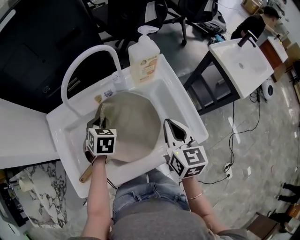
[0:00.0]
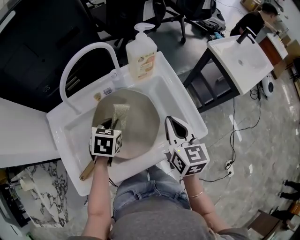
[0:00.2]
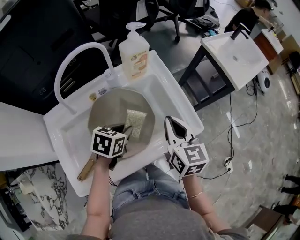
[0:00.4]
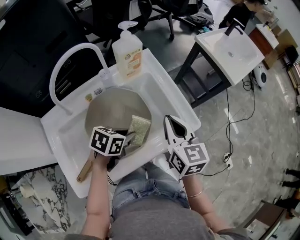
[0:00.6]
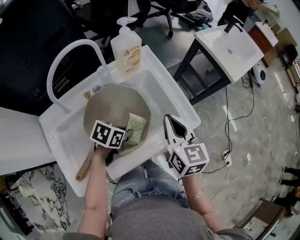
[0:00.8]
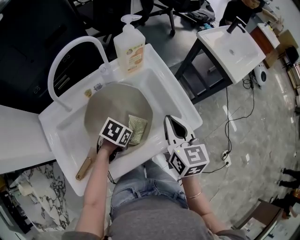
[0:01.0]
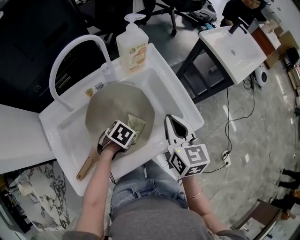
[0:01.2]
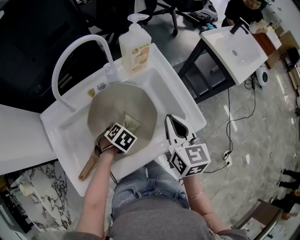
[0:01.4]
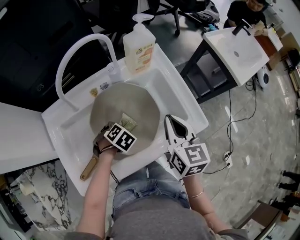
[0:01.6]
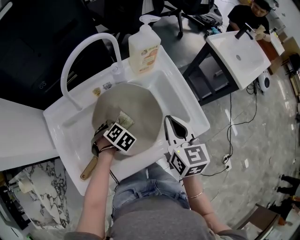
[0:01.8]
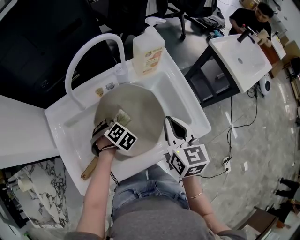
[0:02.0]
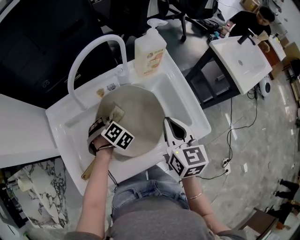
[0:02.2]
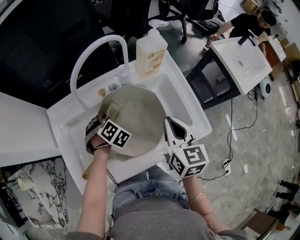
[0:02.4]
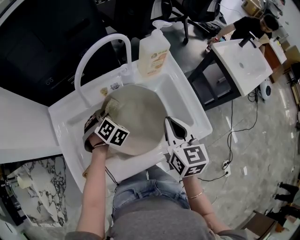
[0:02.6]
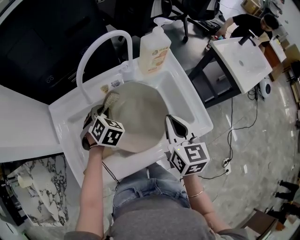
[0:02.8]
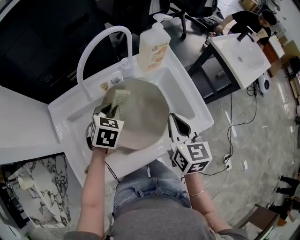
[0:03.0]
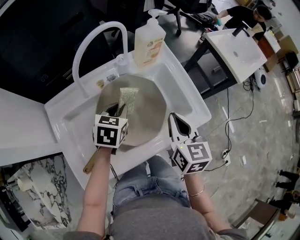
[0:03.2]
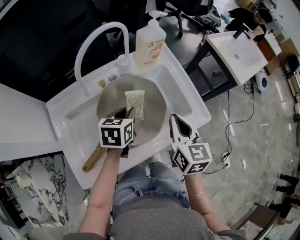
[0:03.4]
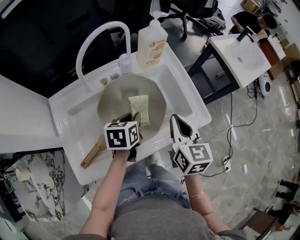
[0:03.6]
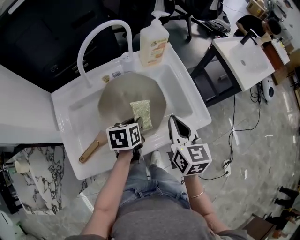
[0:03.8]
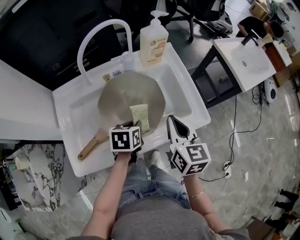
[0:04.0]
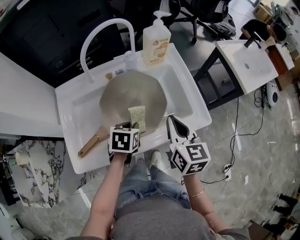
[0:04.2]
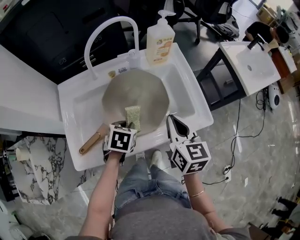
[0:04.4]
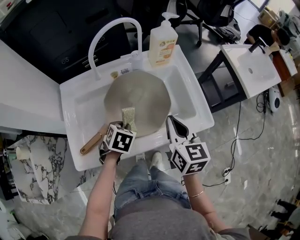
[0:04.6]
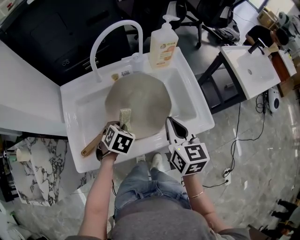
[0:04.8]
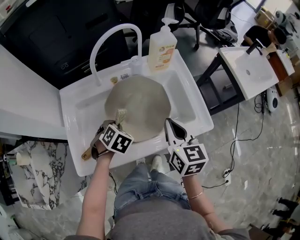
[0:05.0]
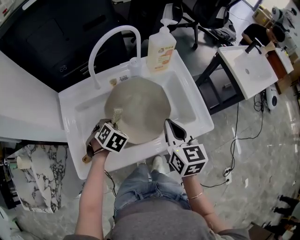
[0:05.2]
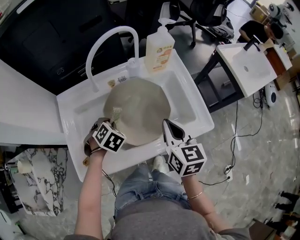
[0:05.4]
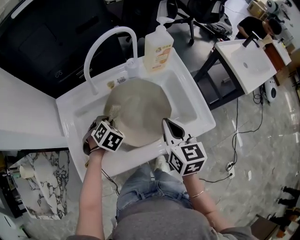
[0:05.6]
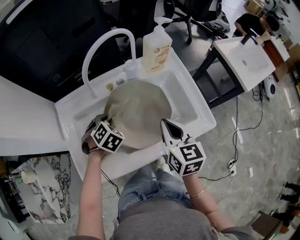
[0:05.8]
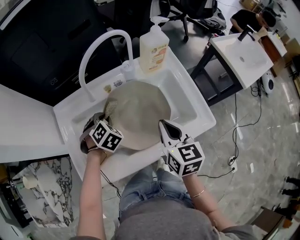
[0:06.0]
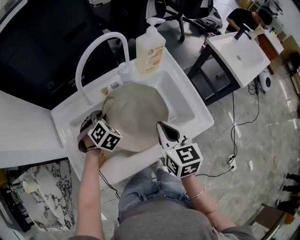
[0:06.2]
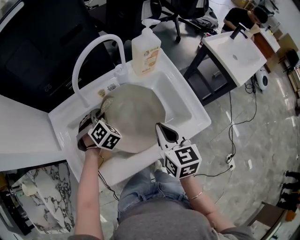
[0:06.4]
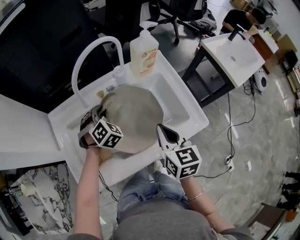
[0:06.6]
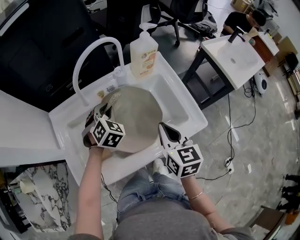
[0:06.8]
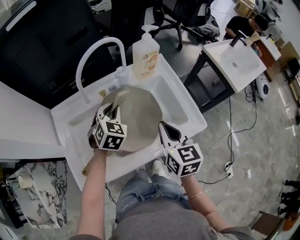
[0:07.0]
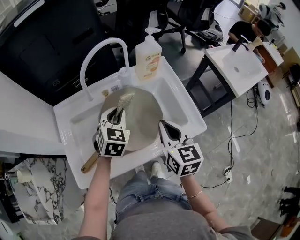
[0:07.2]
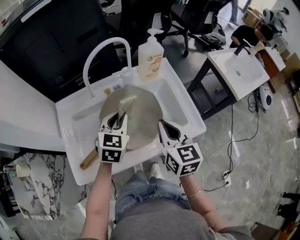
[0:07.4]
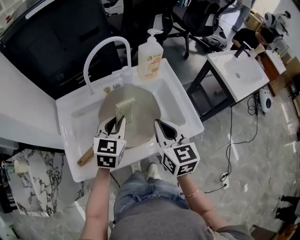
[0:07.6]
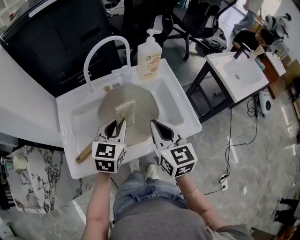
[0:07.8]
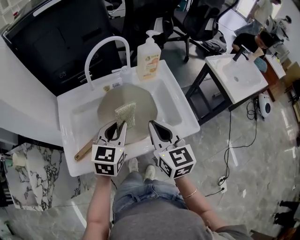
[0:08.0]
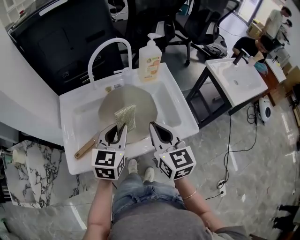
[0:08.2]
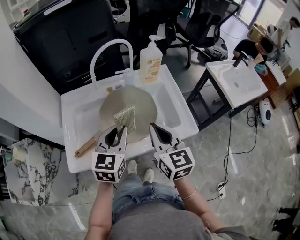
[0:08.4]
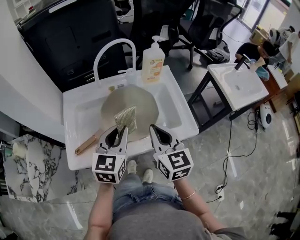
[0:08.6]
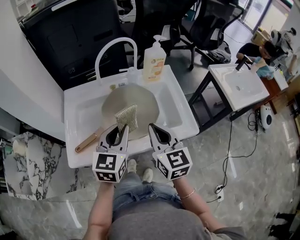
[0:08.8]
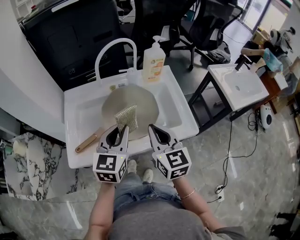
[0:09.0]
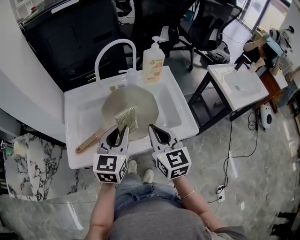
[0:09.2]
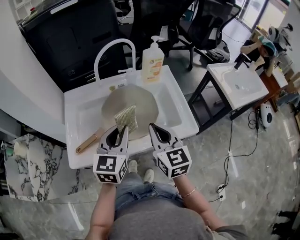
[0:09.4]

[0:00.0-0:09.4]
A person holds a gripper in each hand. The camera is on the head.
0:00.0 to 0:01.6: The left gripper travels downward by about 10 cm, and changes its angle by approximately 40 degrees.
0:01.6 to 0:03.2: The left gripper heads upward, covering about 15 cm, and angles its fingers upward, by some 30 degrees.
0:03.2 to 0:04.8: The left gripper heads backward and downward, covering some 10 cm, and swivels about 30 degrees.
0:04.8 to 0:06.2: The left gripper is displaced forward by approximately 15 cm, and swivels roughly 30 degrees.
0:06.2 to 0:07.8: The right gripper moves upward, roughly 5 cm. The left gripper goes about 20 cm upward, backward and to the right, and changes its angle by about 50 degrees.
0:07.8 to 0:09.4: The left gripper moves backward, roughly 5 cm.

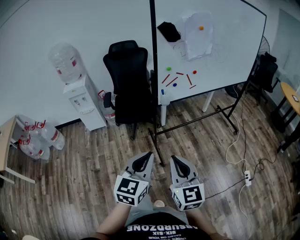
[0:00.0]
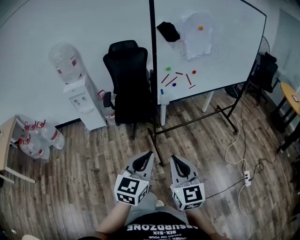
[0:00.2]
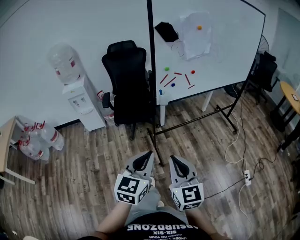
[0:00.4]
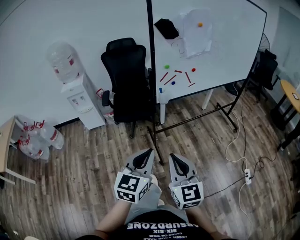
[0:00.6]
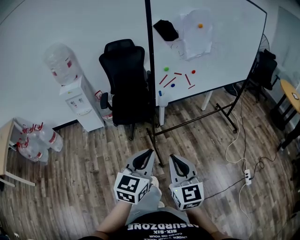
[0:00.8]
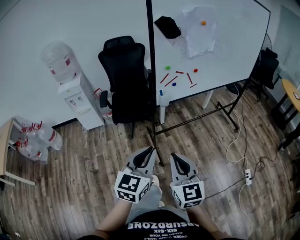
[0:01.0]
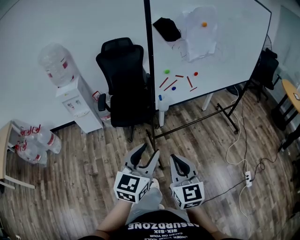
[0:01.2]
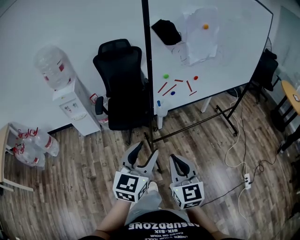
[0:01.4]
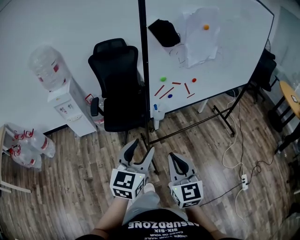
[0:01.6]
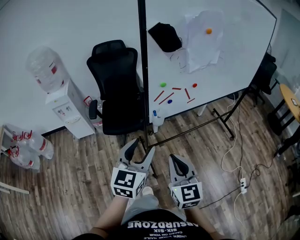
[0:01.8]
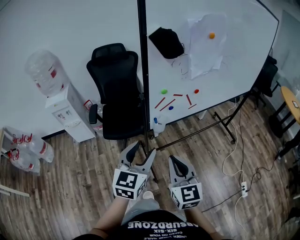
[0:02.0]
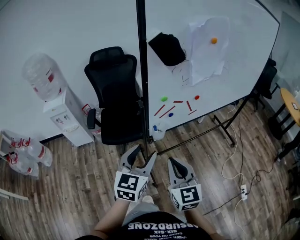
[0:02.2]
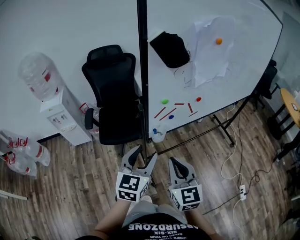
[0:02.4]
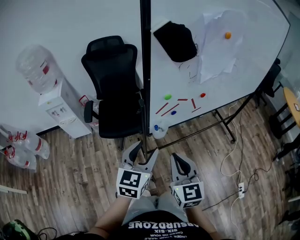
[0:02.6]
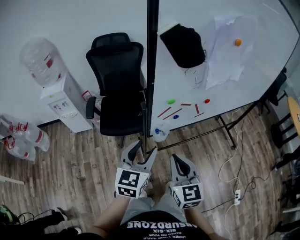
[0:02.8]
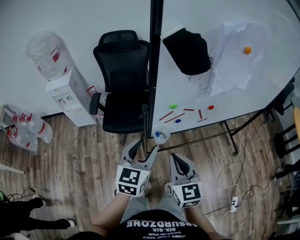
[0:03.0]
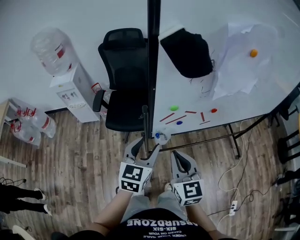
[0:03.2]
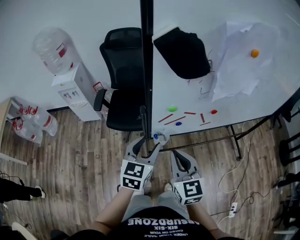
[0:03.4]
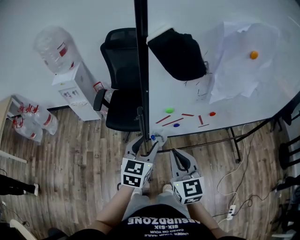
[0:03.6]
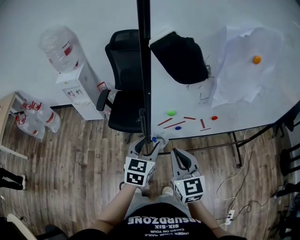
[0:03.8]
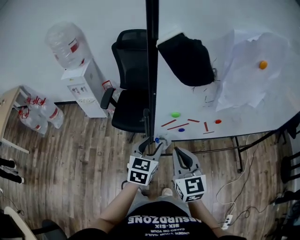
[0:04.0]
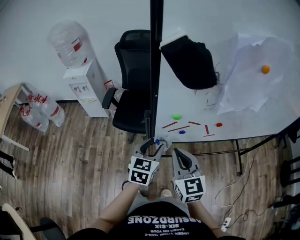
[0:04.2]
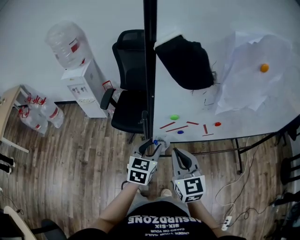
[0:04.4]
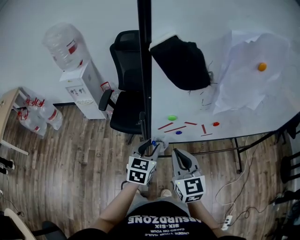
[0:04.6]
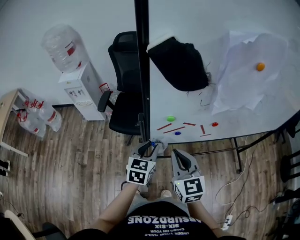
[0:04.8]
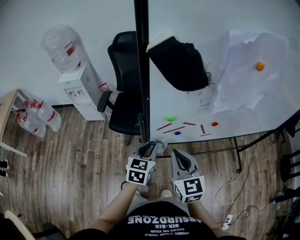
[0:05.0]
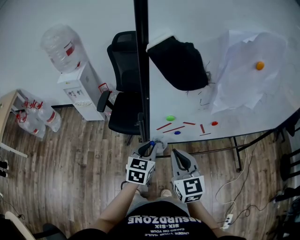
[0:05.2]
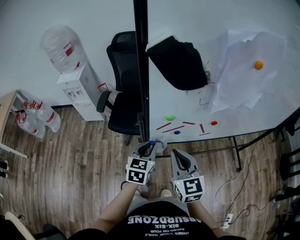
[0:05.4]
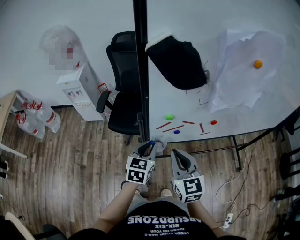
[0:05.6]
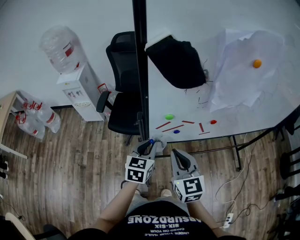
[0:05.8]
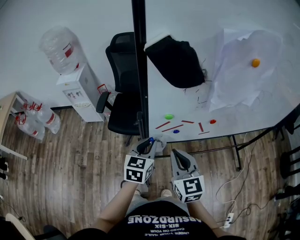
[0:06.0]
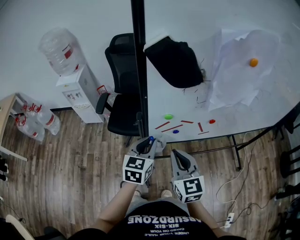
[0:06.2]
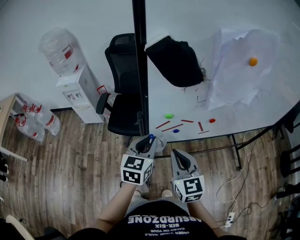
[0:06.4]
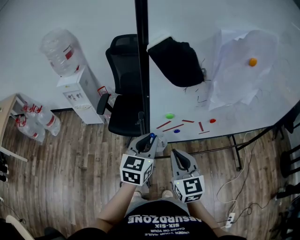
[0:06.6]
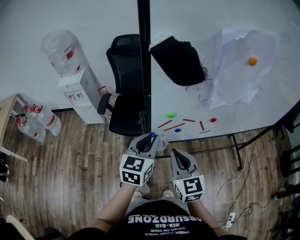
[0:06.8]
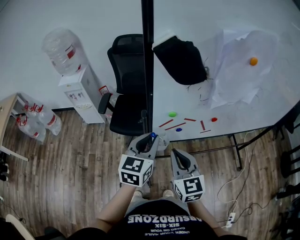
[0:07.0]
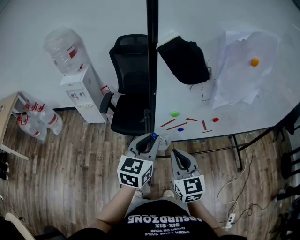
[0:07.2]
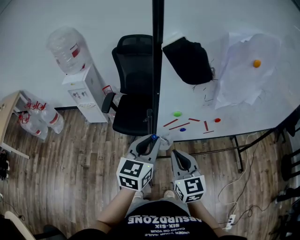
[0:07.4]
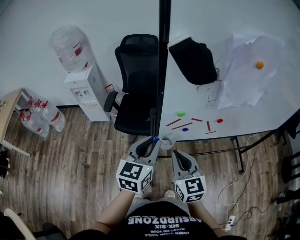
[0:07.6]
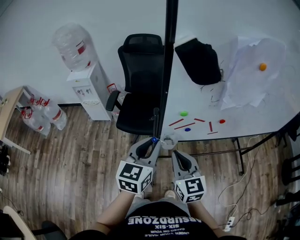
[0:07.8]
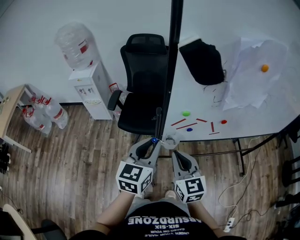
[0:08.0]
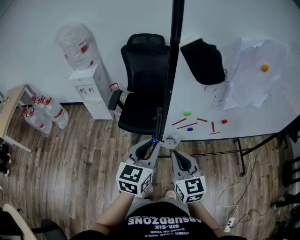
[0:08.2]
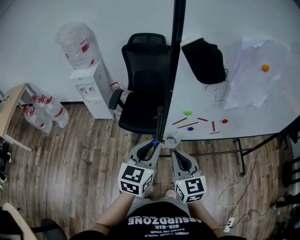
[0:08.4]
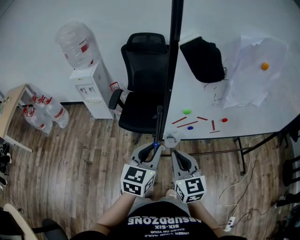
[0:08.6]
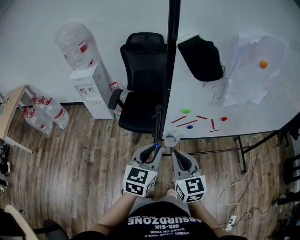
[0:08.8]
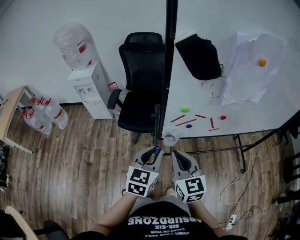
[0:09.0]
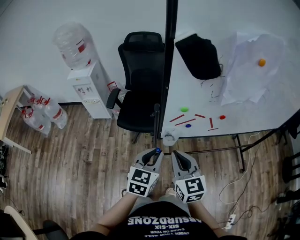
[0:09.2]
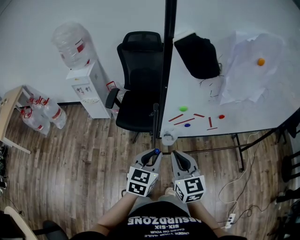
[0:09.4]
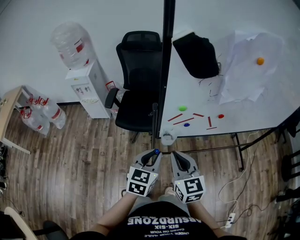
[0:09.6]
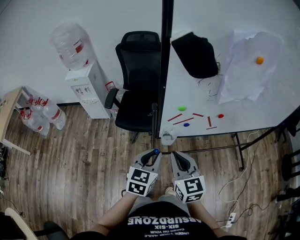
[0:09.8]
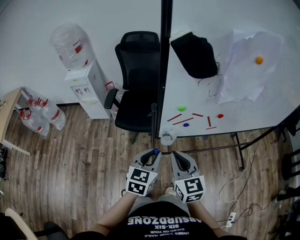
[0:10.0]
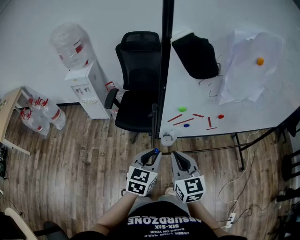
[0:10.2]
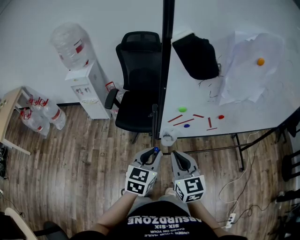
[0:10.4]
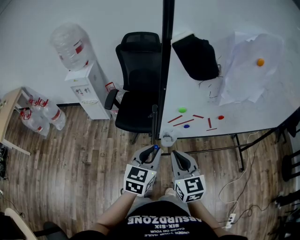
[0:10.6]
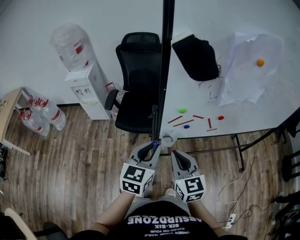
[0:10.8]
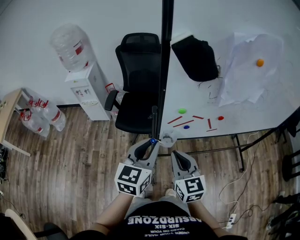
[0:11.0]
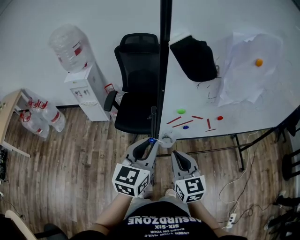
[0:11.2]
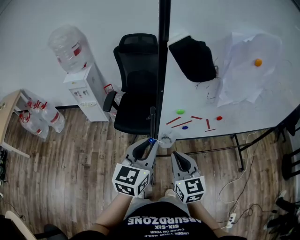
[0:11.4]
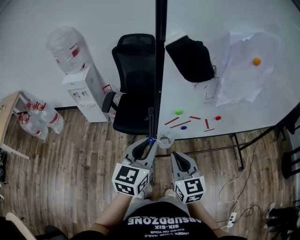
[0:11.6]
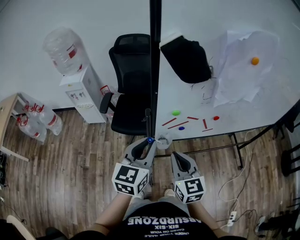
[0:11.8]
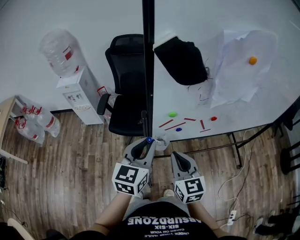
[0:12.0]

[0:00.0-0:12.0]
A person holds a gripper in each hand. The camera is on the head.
0:00.0 to 0:01.6: The grippers both shift forward by about 20 cm. The left gripper opens its fingers.
0:01.6 to 0:03.0: Both grippers move forward, approximately 20 cm.
0:03.0 to 0:04.4: The right gripper shifts about 5 cm forward, while the left gripper shifts about 10 cm downward and forward.
0:04.4 to 0:06.0: The left gripper closes up.
0:06.0 to 0:07.6: The left gripper shifts approximately 10 cm upward.
0:07.6 to 0:09.0: The left gripper shifts about 5 cm downward.
0:09.0 to 0:10.4: There are only small adjustments of the grippers.
0:10.4 to 0:12.0: The left gripper travels upward by some 10 cm.

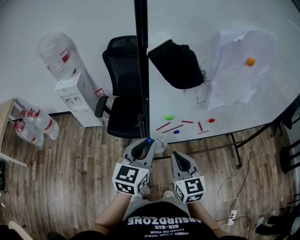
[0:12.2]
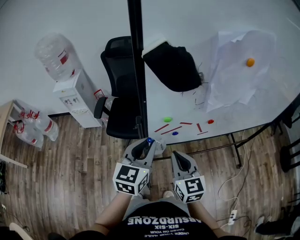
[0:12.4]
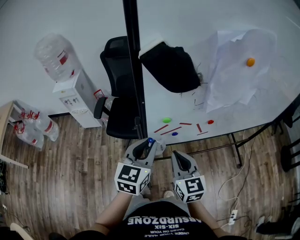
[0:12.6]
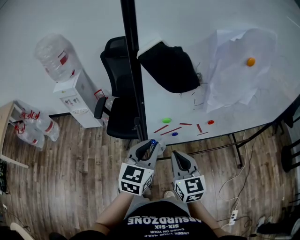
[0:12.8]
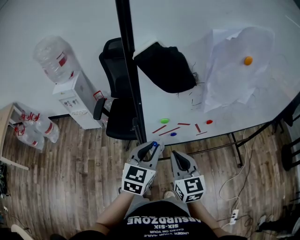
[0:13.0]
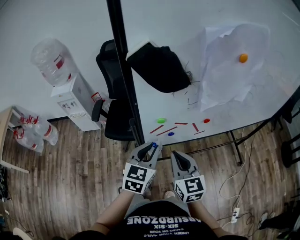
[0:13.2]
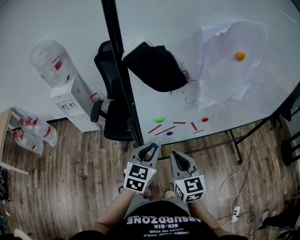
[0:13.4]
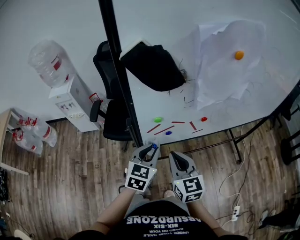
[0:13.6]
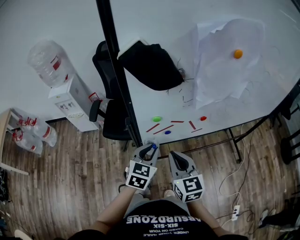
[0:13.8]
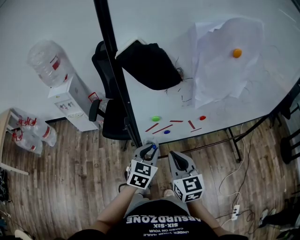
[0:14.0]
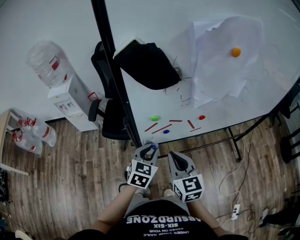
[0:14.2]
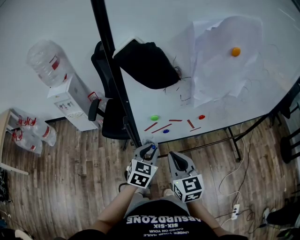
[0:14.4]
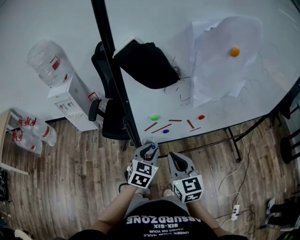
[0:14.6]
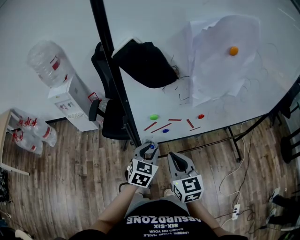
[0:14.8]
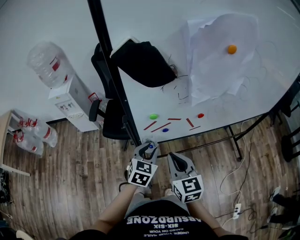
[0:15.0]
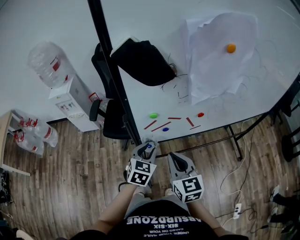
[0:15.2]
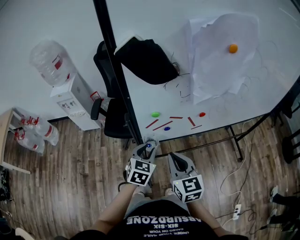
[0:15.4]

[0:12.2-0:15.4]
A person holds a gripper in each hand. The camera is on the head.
0:12.2 to 0:13.8: The left gripper goes roughly 10 cm downward and to the right, and rotates some 20 degrees.
0:13.8 to 0:15.4: The grippers make only small movements.
